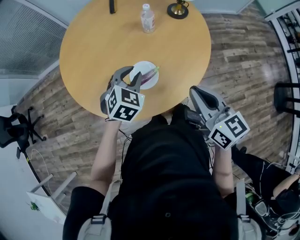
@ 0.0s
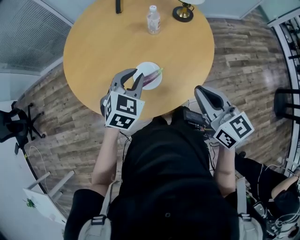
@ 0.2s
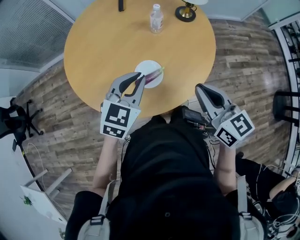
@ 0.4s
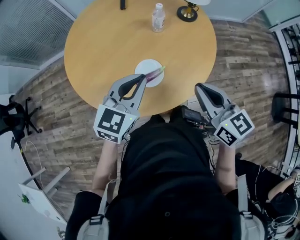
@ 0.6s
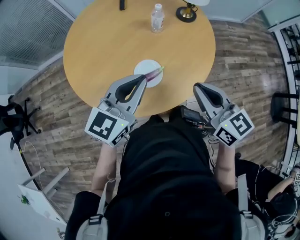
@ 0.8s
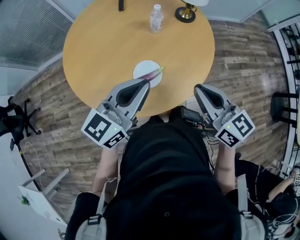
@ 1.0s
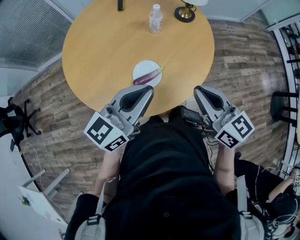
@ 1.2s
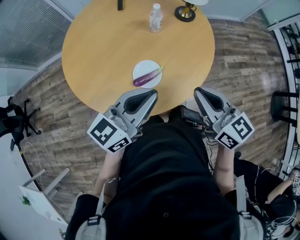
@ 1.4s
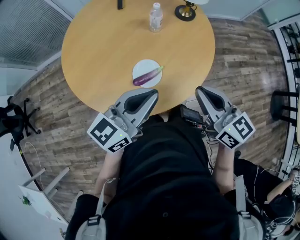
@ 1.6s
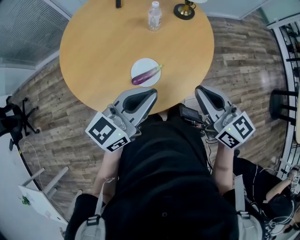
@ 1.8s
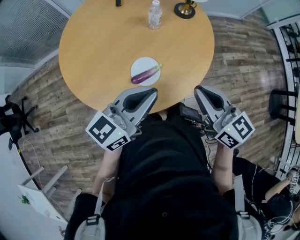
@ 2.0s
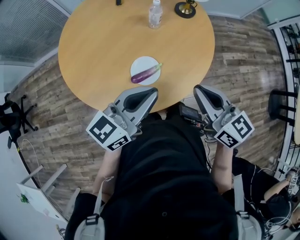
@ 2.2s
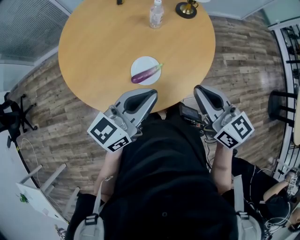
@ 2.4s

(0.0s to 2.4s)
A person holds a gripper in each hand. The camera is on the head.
0.0s - 1.2s: The left gripper travels upward and backward by roughly 15 cm, angles its fingers upward, by roughly 40 degrees, and closes up.
1.2s - 2.4s: The grippers move only a little.

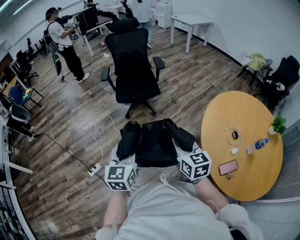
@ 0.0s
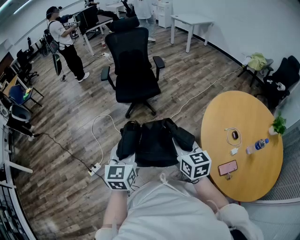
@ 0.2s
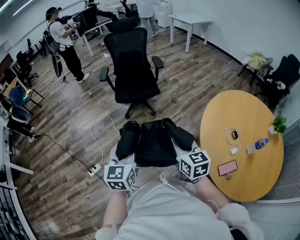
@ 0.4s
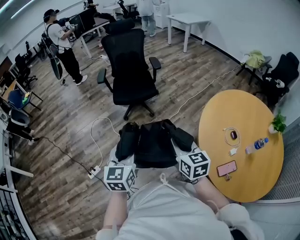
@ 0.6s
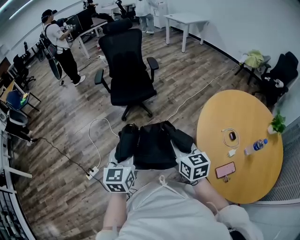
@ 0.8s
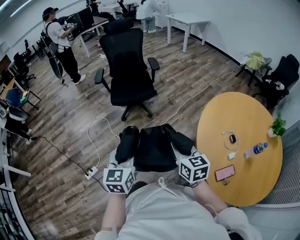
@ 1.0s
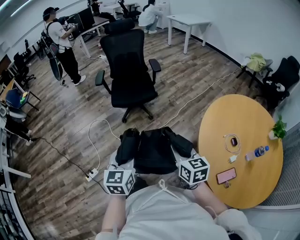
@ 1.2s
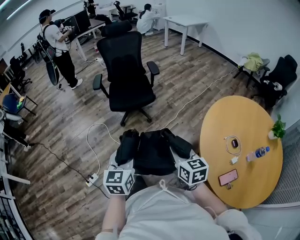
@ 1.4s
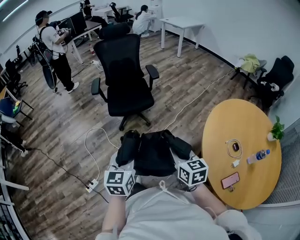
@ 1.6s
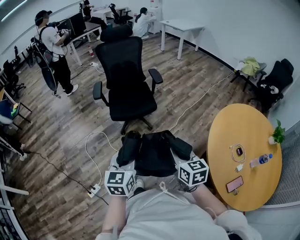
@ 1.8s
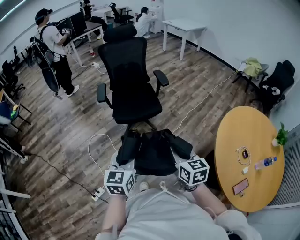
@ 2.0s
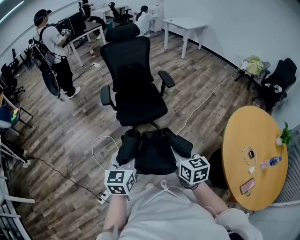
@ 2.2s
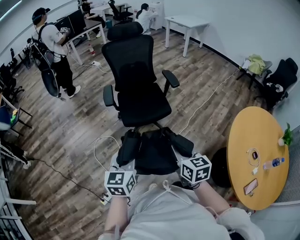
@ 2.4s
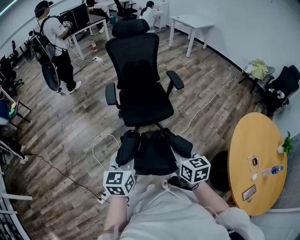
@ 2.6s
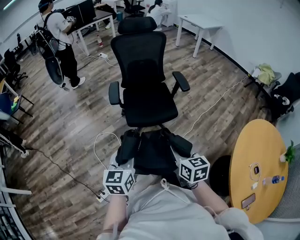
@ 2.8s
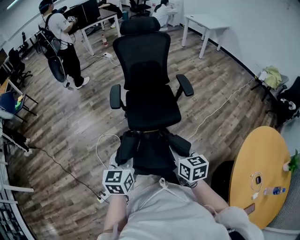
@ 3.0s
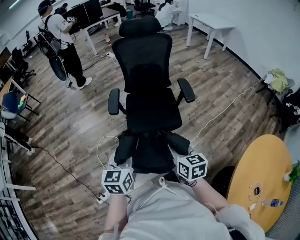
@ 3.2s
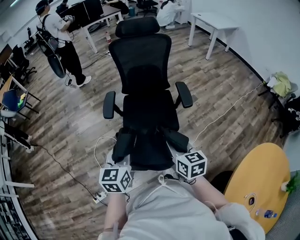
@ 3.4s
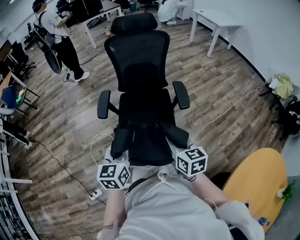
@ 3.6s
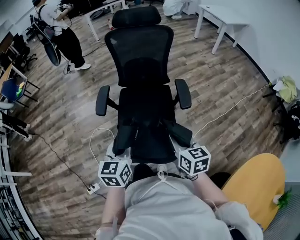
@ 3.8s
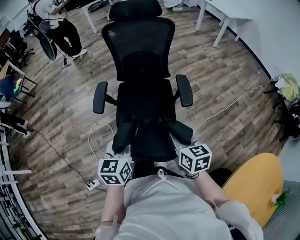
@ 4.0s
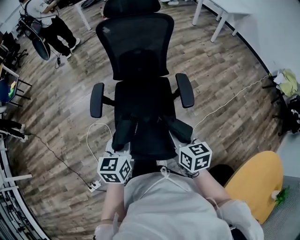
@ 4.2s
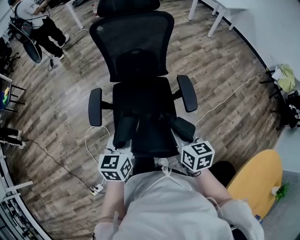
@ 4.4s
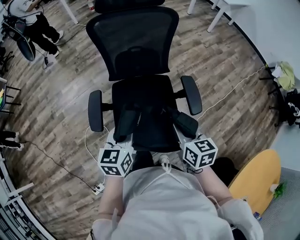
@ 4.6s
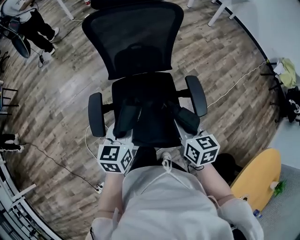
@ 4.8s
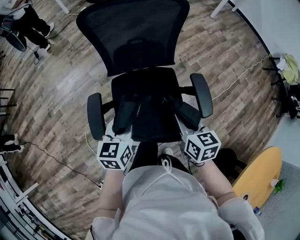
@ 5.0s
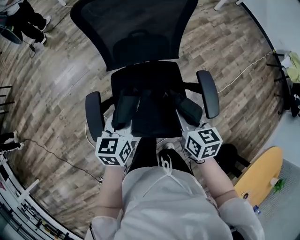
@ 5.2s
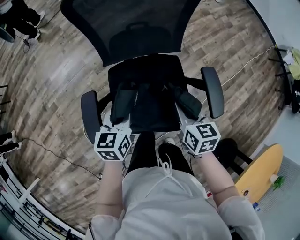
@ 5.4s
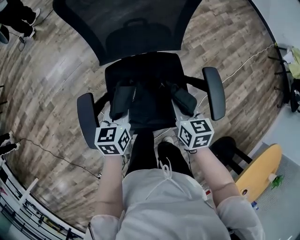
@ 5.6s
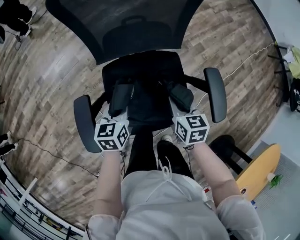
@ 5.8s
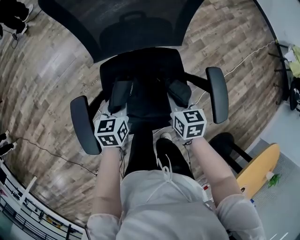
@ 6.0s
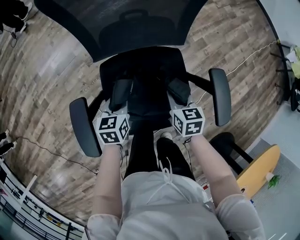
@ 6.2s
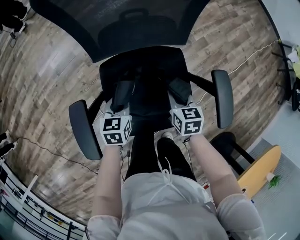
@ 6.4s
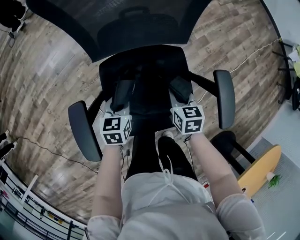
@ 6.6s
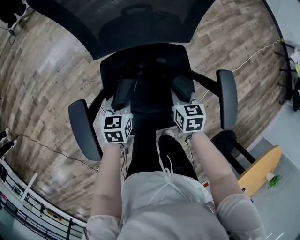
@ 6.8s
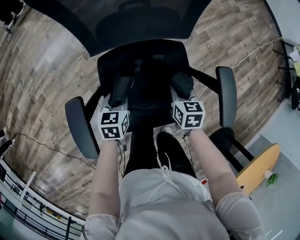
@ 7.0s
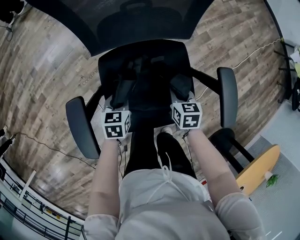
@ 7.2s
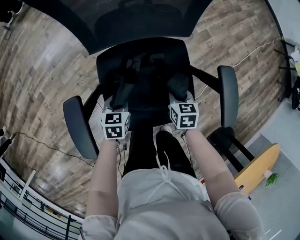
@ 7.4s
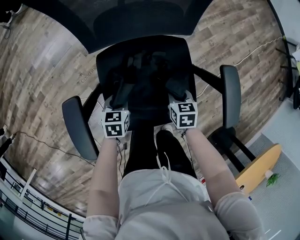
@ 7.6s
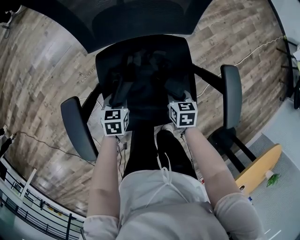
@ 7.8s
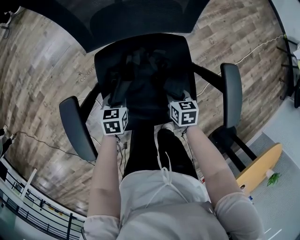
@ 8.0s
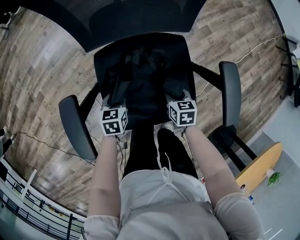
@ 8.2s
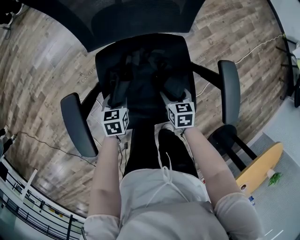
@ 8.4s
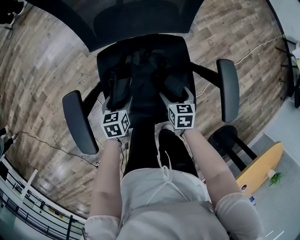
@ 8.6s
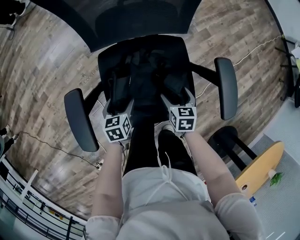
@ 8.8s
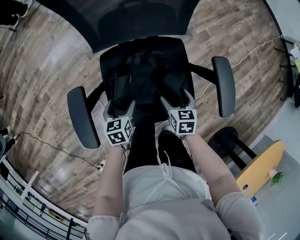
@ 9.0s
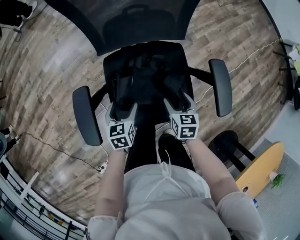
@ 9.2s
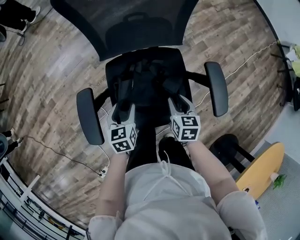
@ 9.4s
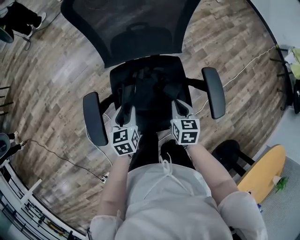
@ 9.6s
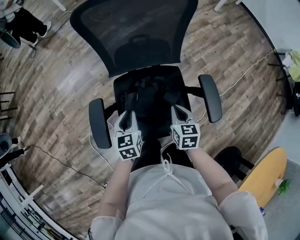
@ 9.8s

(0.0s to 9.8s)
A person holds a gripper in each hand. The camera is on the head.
0.0s - 1.4s: Both grippers move forward, approximately 10 cm.
1.4s - 2.8s: The two grippers go about 40 cm forward and to the left.
2.8s - 4.2s: Both grippers travel together forward and to the right, some 35 cm.
4.2s - 5.6s: Both grippers move forward and downward, roughly 40 cm.
5.6s - 7.0s: Both grippers move downward, some 15 cm.
7.0s - 8.4s: The left gripper goes roughly 5 cm downward, while the right gripper shifts about 10 cm downward and backward, and opens its fingers.
8.4s - 9.8s: Both grippers travel together upward, about 25 cm. The right gripper closes up. The left gripper opens, then closes again.

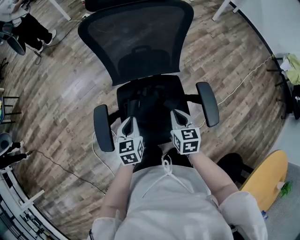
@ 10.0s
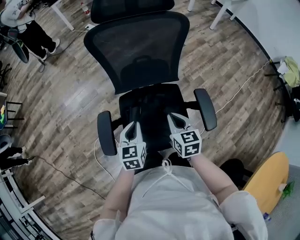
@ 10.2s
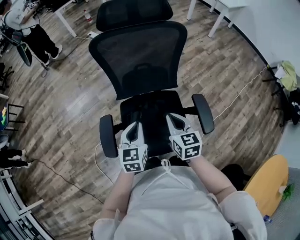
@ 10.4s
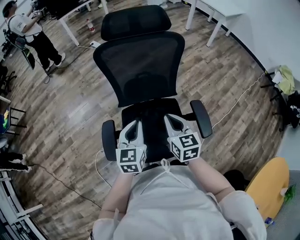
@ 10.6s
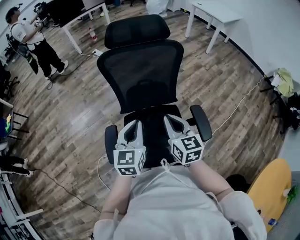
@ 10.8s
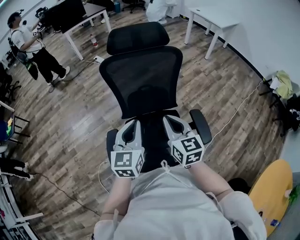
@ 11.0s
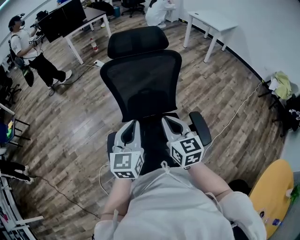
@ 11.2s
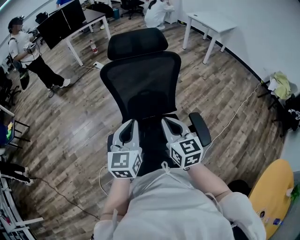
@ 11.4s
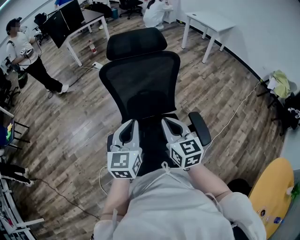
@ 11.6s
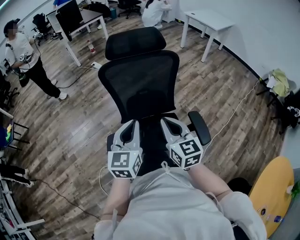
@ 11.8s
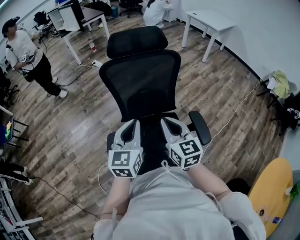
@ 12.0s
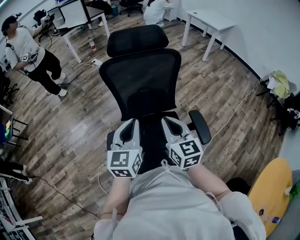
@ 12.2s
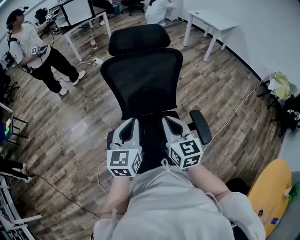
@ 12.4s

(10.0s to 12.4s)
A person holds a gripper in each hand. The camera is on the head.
10.0s - 11.2s: The grippers both shift upward by roughly 25 cm. The left gripper changes its angle by some 30 degrees. The right gripper rotates about 30 degrees.
11.2s - 12.4s: The two grippers keep their place.

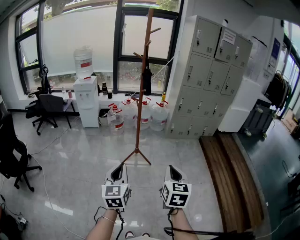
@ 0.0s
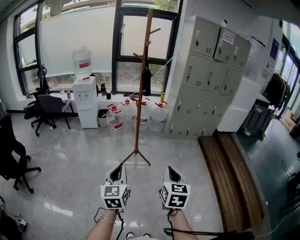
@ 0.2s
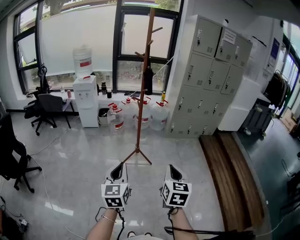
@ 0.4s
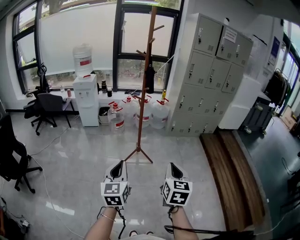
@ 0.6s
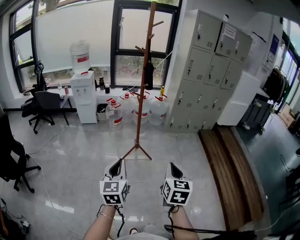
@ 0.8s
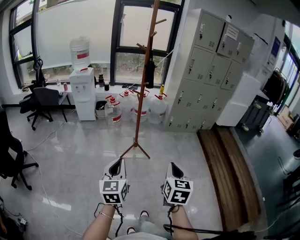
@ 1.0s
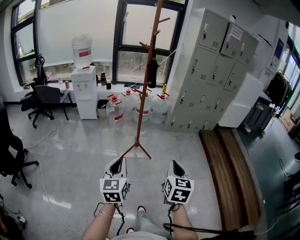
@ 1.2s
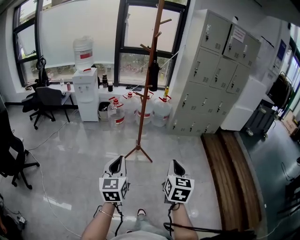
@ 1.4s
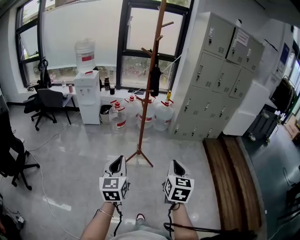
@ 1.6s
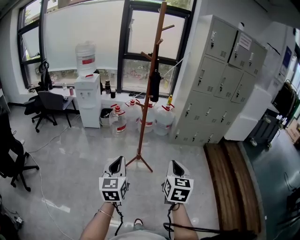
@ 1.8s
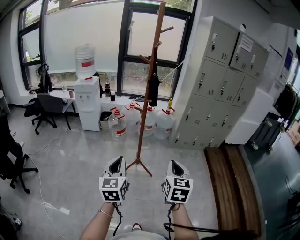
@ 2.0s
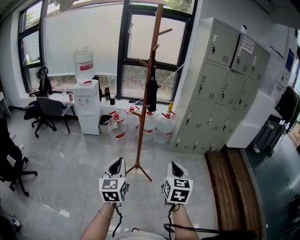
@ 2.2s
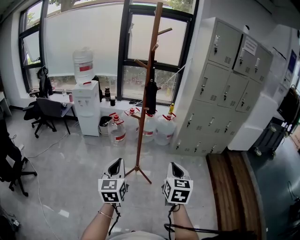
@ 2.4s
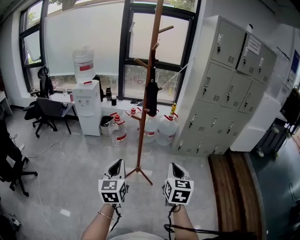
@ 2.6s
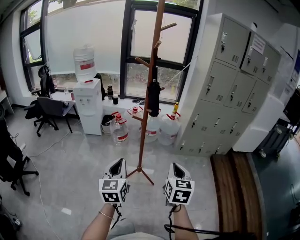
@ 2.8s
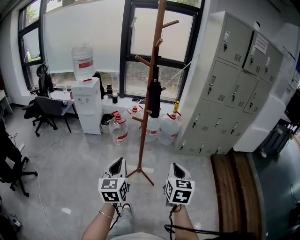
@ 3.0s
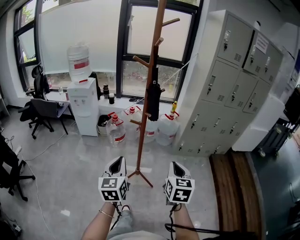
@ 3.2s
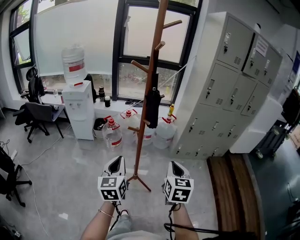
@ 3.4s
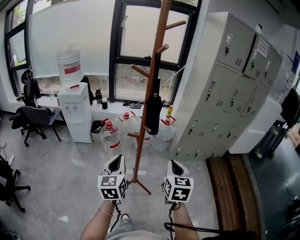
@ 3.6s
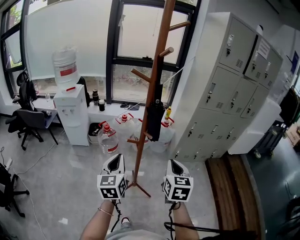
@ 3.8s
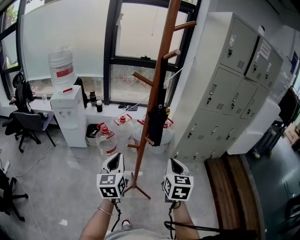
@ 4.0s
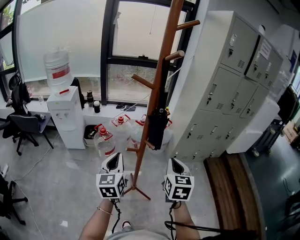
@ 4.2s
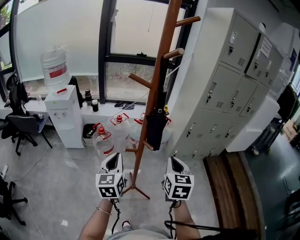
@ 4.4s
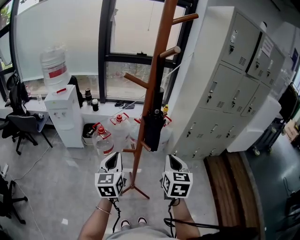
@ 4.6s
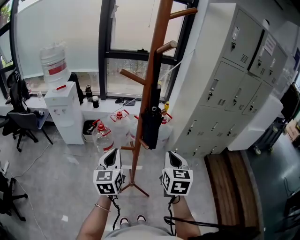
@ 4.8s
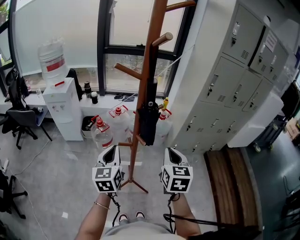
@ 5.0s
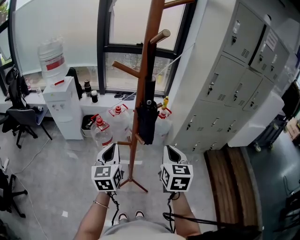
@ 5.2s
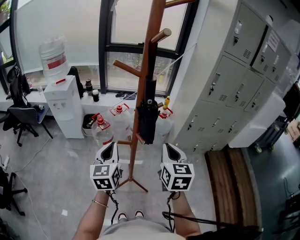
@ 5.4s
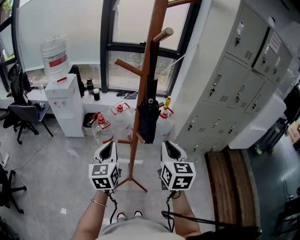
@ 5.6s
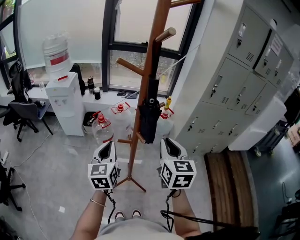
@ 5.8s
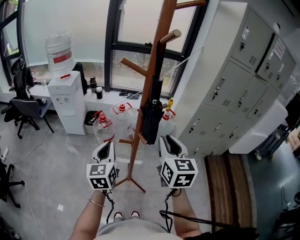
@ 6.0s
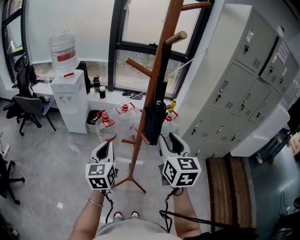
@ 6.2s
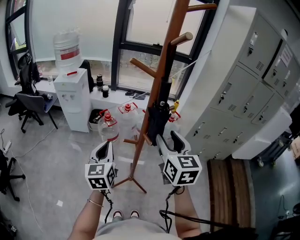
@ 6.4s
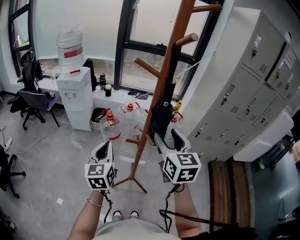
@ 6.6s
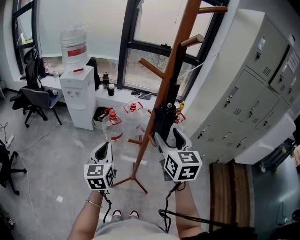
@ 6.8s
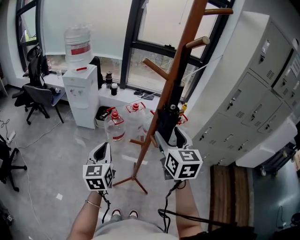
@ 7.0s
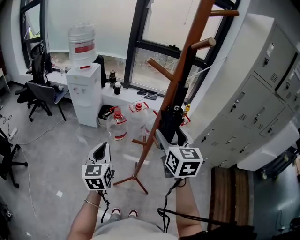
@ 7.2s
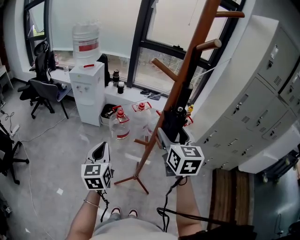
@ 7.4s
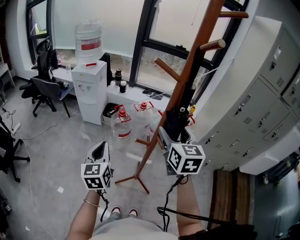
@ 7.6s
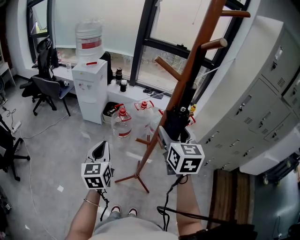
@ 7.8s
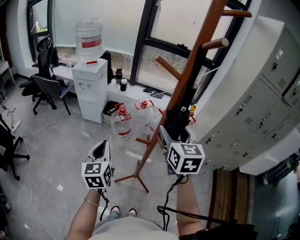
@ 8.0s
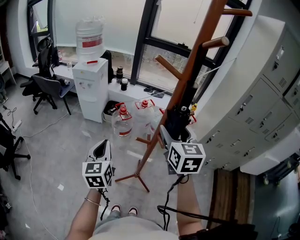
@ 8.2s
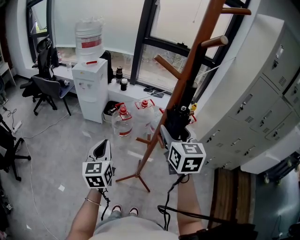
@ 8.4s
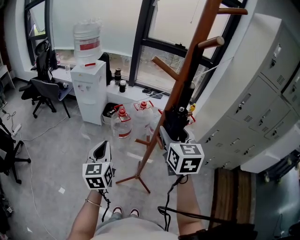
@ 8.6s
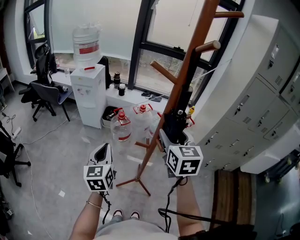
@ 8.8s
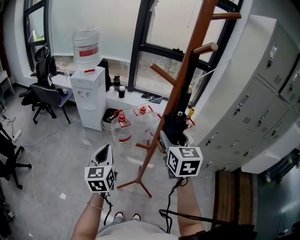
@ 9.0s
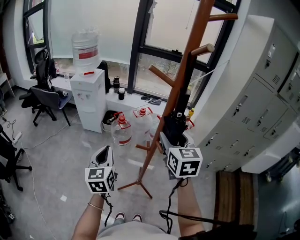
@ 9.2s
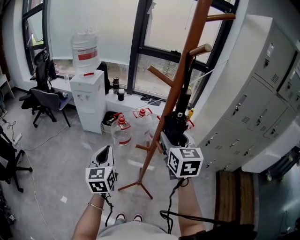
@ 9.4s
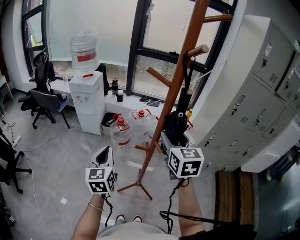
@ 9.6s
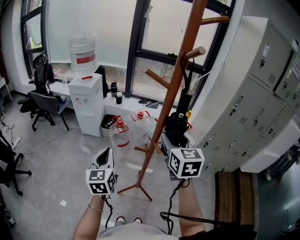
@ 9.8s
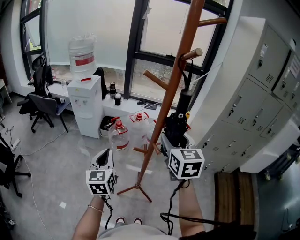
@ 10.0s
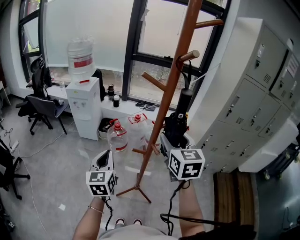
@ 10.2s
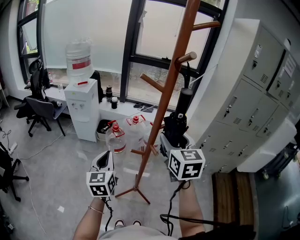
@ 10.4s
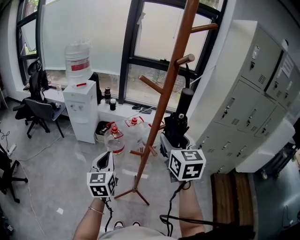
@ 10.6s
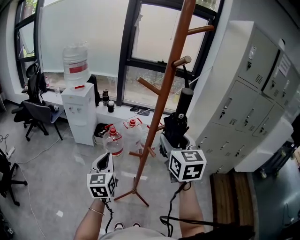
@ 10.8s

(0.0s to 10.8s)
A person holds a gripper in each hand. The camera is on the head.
0.0s - 1.6s: Both grippers travel together forward, some 10 cm.
1.6s - 3.0s: Both grippers move forward, some 25 cm.
3.0s - 4.6s: Both grippers travel together forward, approximately 25 cm.
4.6s - 6.2s: The right gripper shifts approximately 5 cm upward, and opens up.
6.2s - 7.8s: The right gripper heads forward, covering approximately 5 cm, and opens its fingers, while the left gripper shifts approximately 10 cm to the left.
7.8s - 9.2s: There are only small adjustments of the grippers.
9.2s - 10.8s: The right gripper goes some 5 cm upward.
